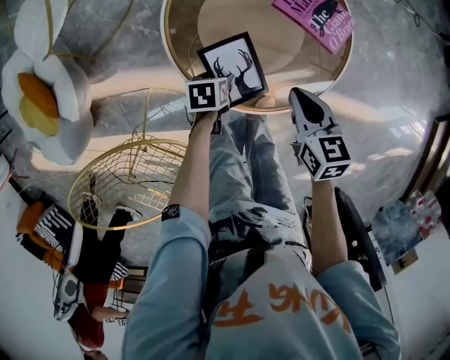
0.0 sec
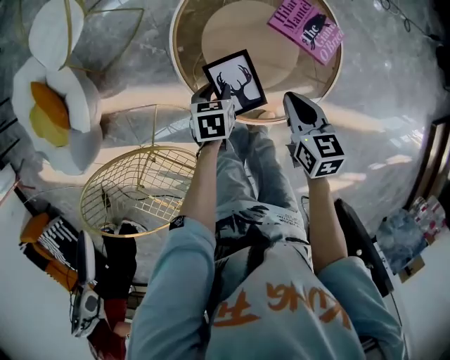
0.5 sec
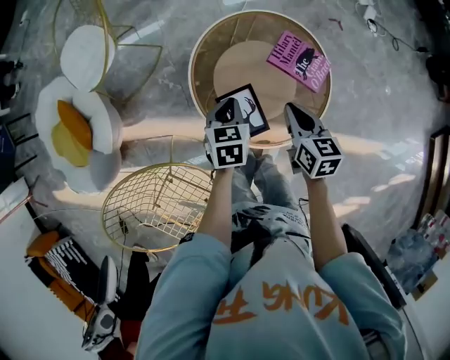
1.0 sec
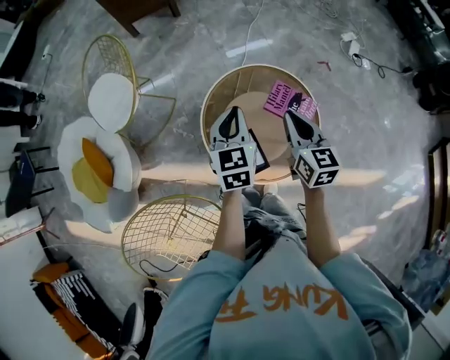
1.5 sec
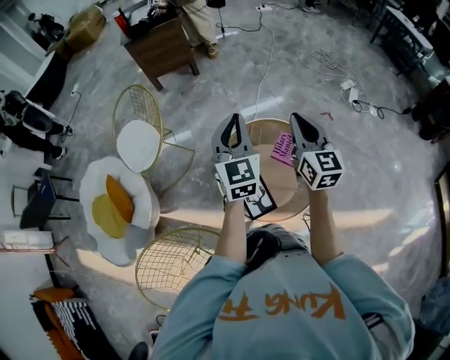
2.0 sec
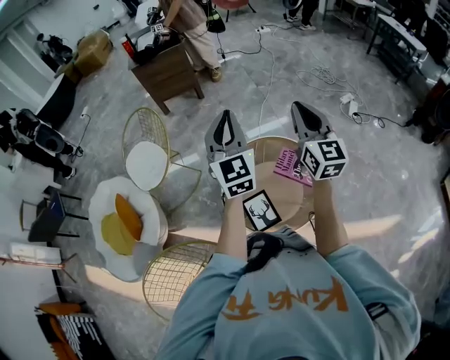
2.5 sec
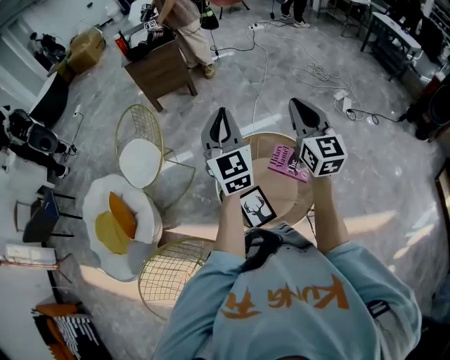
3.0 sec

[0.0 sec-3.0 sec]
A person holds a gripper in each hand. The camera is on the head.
0.0 sec to 1.5 sec: The right gripper travels upward and forward by approximately 25 cm, and changes its angle by some 30 degrees; the left gripper goes about 40 cm upward, tilts its fingers some 40 degrees upward, and closes its fingers.
1.5 sec to 3.0 sec: Both grippers travel together upward, roughly 25 cm. The left gripper changes its angle by some 30 degrees, while the right gripper changes its angle by roughly 30 degrees.

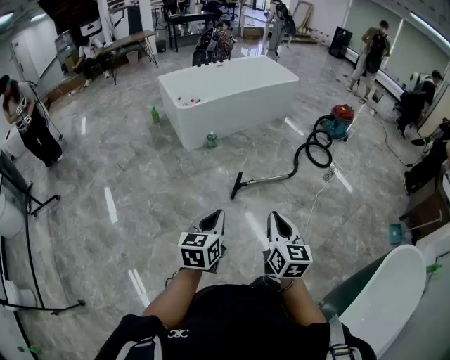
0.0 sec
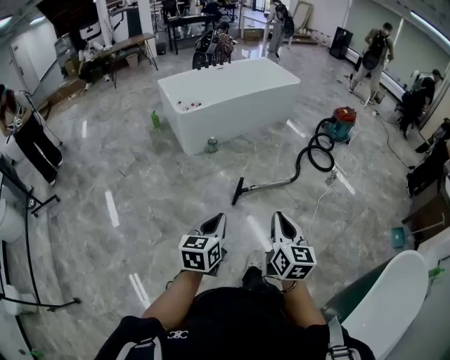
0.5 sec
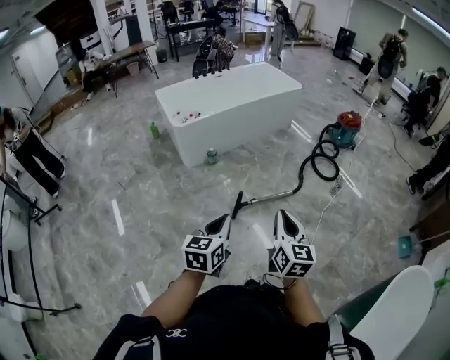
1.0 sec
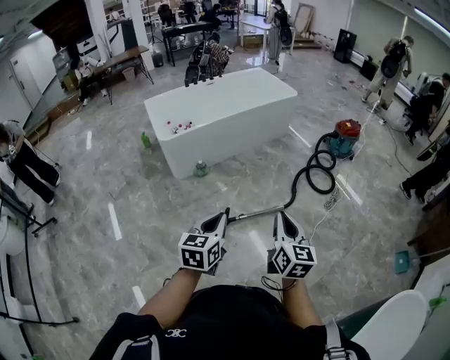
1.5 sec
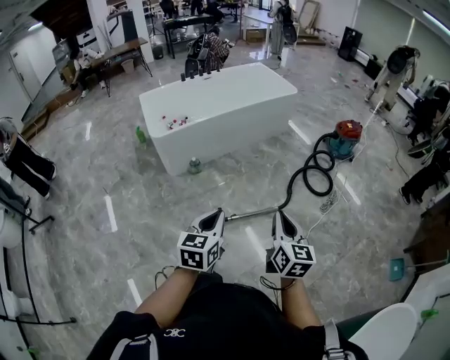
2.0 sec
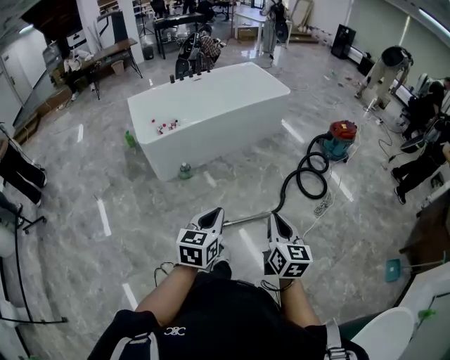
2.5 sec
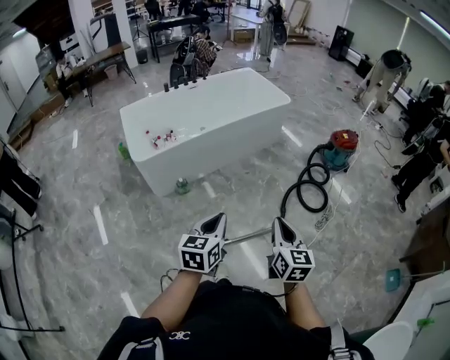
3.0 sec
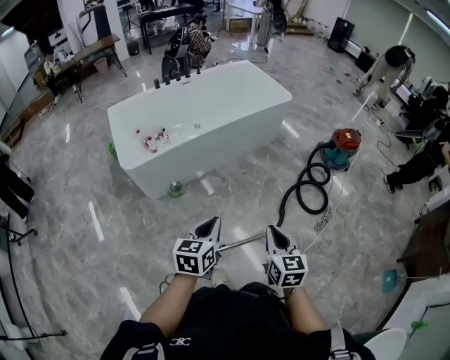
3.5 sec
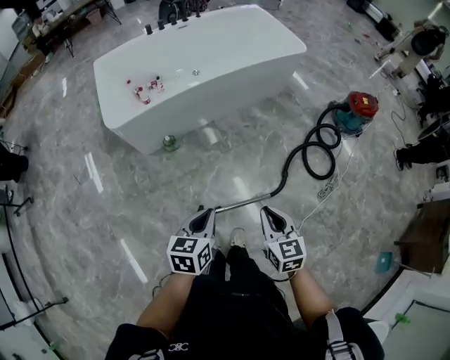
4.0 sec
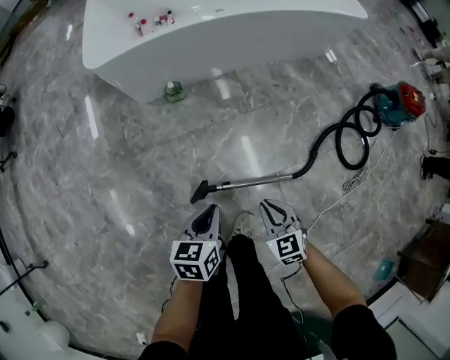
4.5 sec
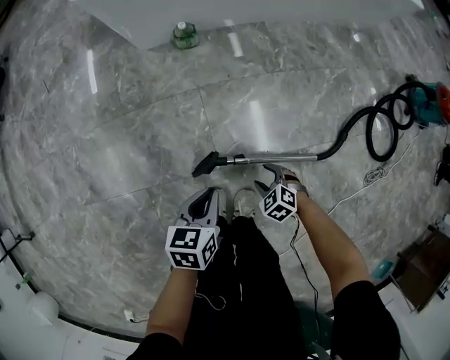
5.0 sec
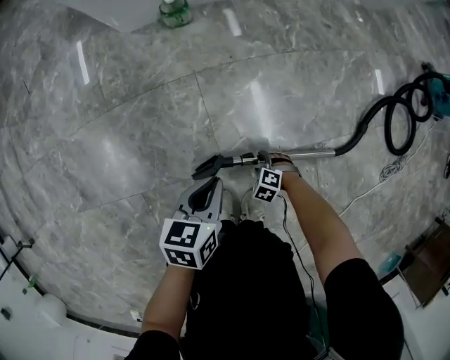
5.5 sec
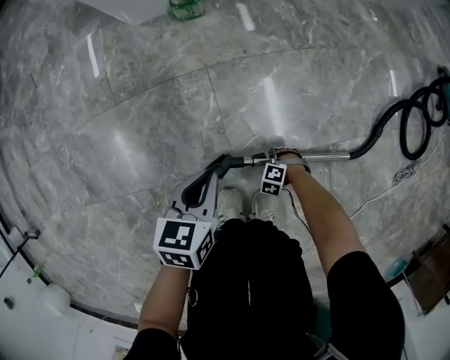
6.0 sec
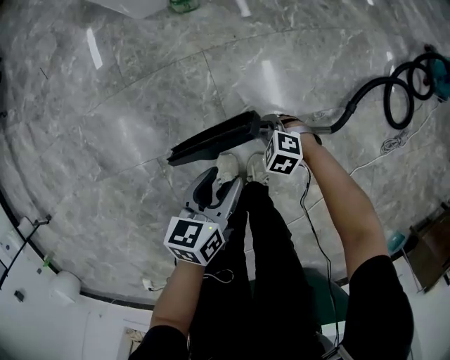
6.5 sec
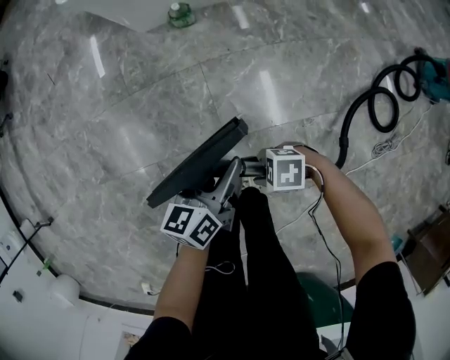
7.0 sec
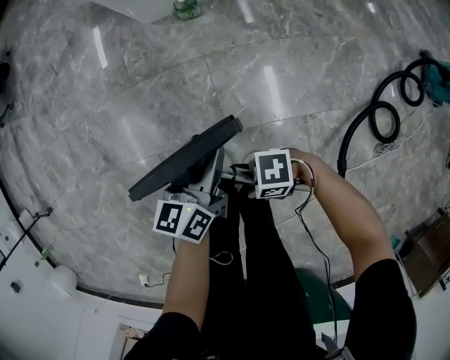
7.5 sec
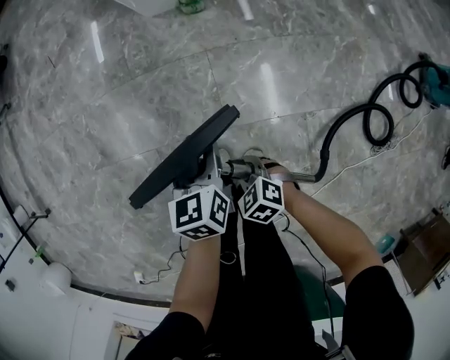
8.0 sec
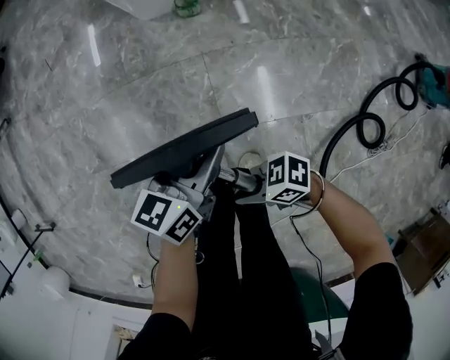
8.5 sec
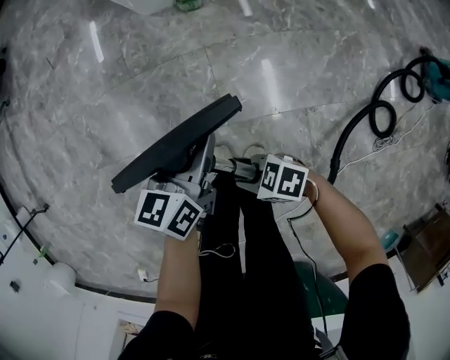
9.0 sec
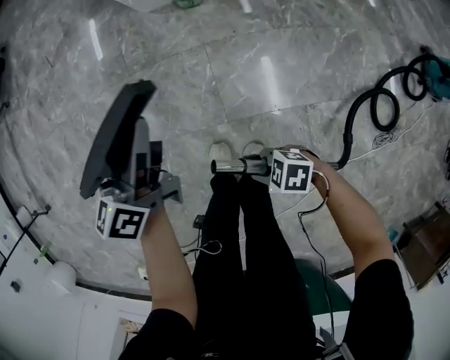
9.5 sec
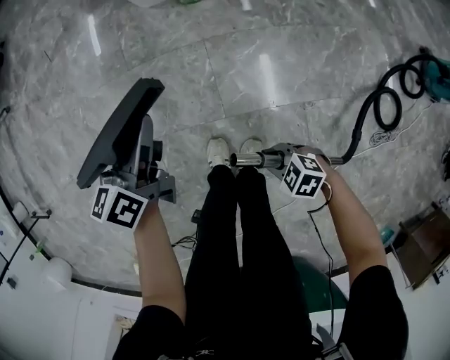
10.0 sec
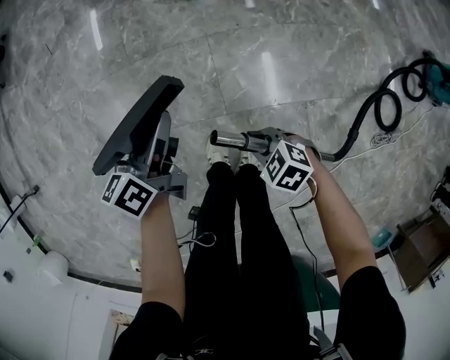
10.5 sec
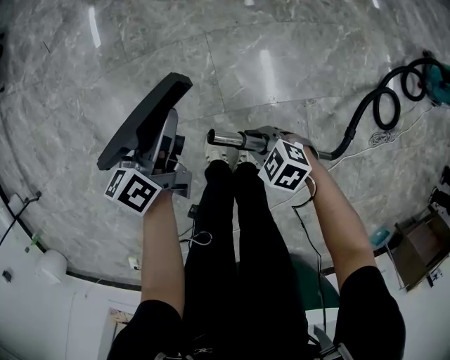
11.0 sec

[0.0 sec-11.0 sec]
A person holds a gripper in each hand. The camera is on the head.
0.0 sec to 2.0 sec: The pair of grippers is taken forward and to the right, about 40 cm.
2.0 sec to 3.5 sec: Both grippers move forward, roughly 30 cm.
3.5 sec to 5.5 sec: The two grippers go some 80 cm downward. The right gripper tips its fingers downward by about 60 degrees, and opens up, while the left gripper rotates about 30 degrees.
5.5 sec to 7.5 sec: The left gripper is displaced upward by roughly 25 cm, swivels roughly 30 degrees, and opens its fingers, while the right gripper travels upward by roughly 40 cm, angles its fingers upward, by approximately 50 degrees, and closes up.
7.5 sec to 9.0 sec: The right gripper goes up and down, some 10 cm each way, reversing 2 times, and swivels roughly 30 degrees.
9.0 sec to 11.0 sec: The left gripper reaches about 5 cm upward, then returns. The right gripper changes place by about 10 cm, and swivels approximately 30 degrees.

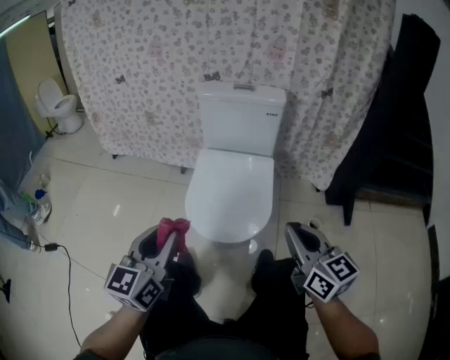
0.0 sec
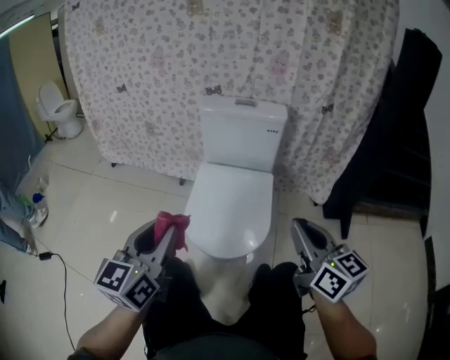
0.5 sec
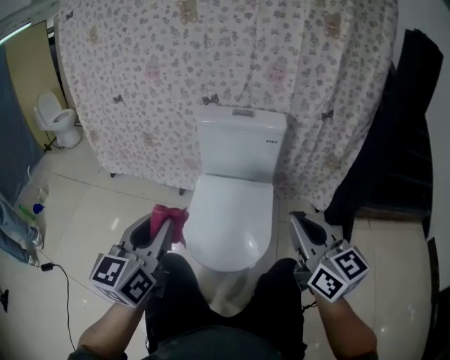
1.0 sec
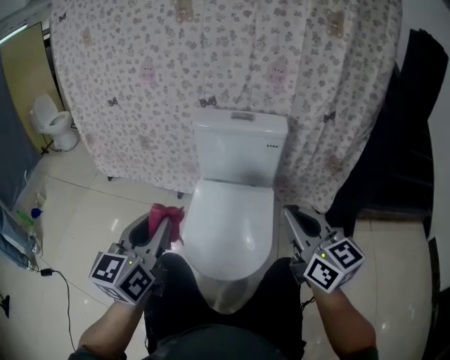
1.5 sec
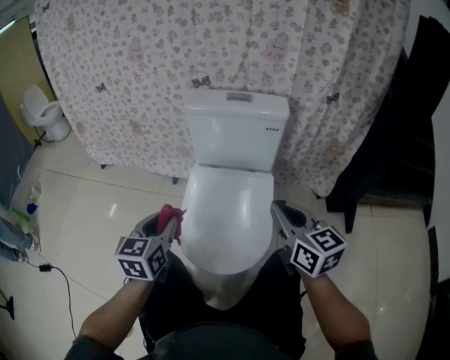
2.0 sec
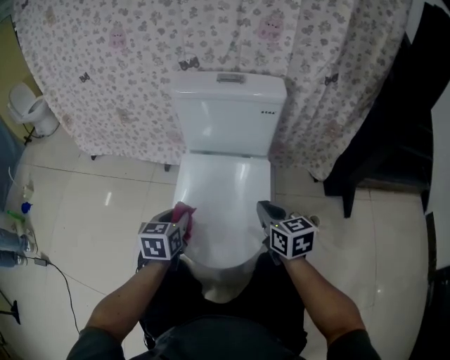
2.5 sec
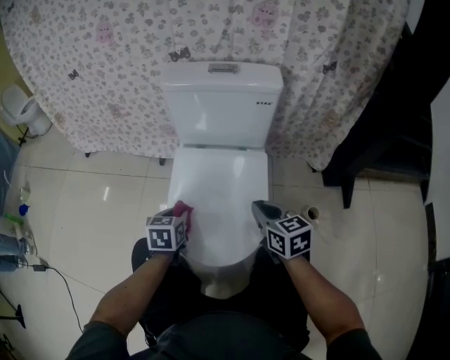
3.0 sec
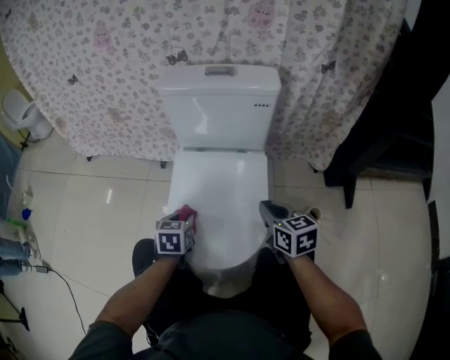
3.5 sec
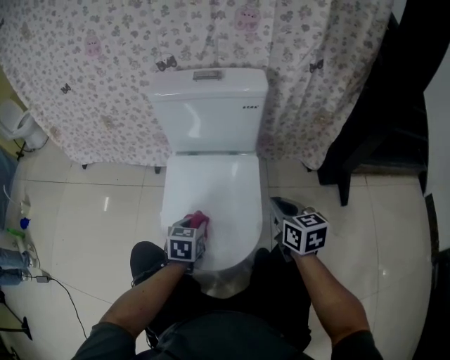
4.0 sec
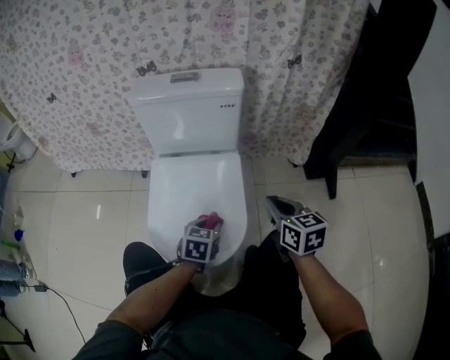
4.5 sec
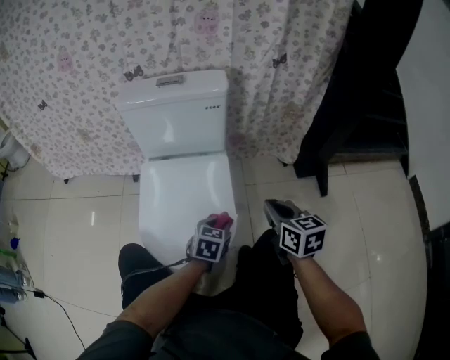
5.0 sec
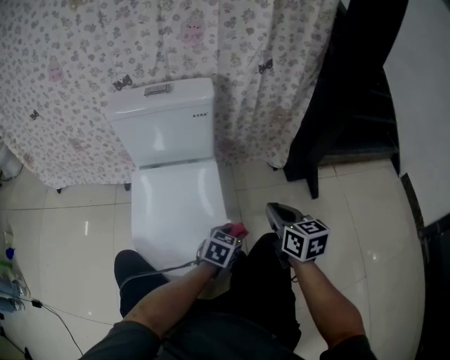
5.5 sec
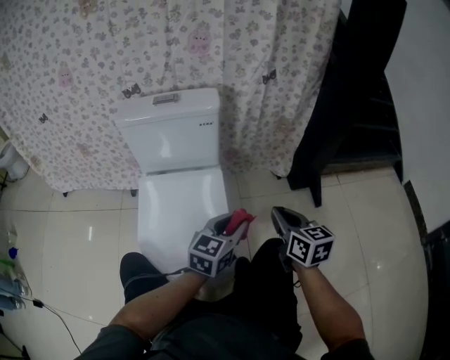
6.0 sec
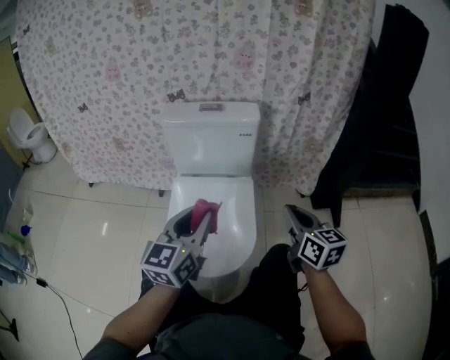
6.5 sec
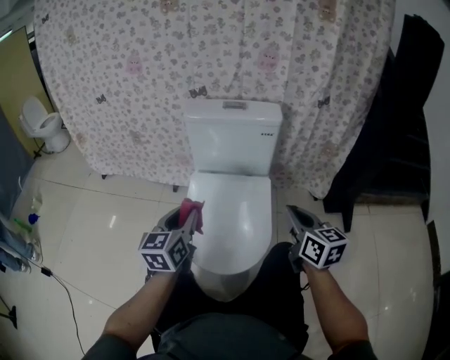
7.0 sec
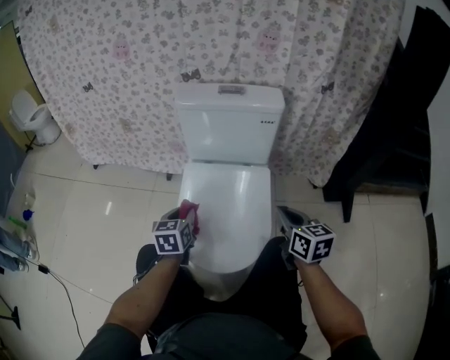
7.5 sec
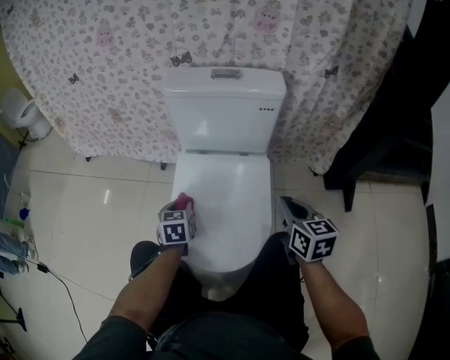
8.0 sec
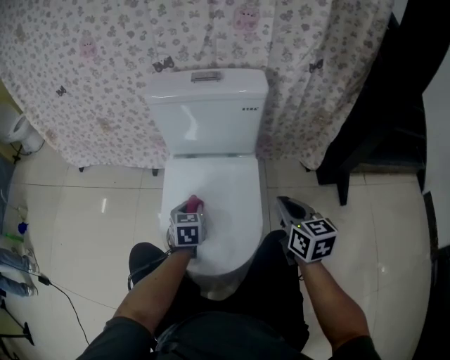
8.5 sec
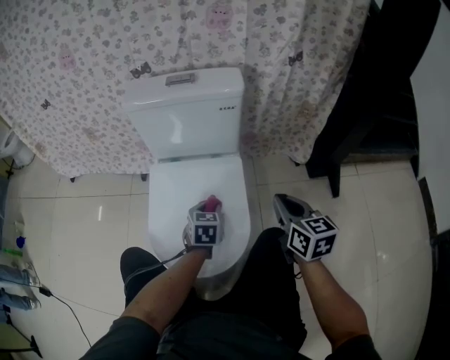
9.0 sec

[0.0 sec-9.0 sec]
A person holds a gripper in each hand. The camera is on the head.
0.0 sec to 2.0 sec: Both grippers travel together forward, about 20 cm.
2.0 sec to 4.5 sec: The right gripper heads downward and to the right, covering some 15 cm, and swivels roughly 20 degrees. The left gripper is displaced to the right and downward by about 30 cm, and turns by approximately 30 degrees.
4.5 sec to 7.0 sec: The left gripper moves upward, approximately 20 cm, and tilts its fingers about 30 degrees upward, while the right gripper travels upward by roughly 10 cm.
7.0 sec to 9.0 sec: The right gripper goes about 10 cm downward and to the right. Meanwhile the left gripper shifts approximately 30 cm downward, to the right and forward, and rotates some 30 degrees.

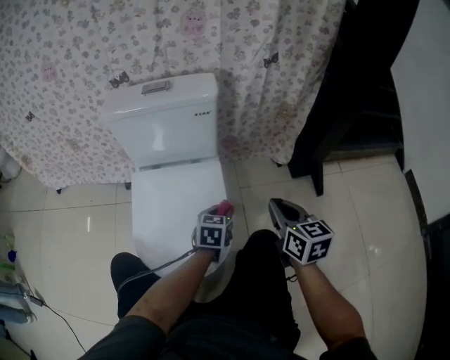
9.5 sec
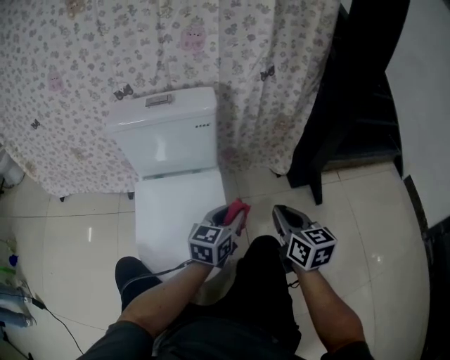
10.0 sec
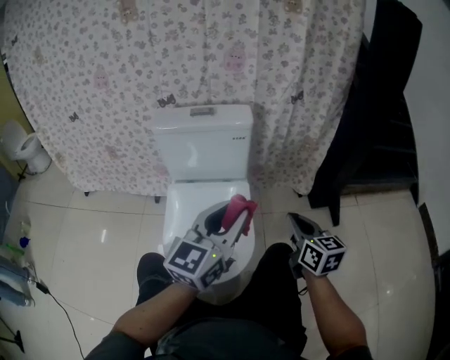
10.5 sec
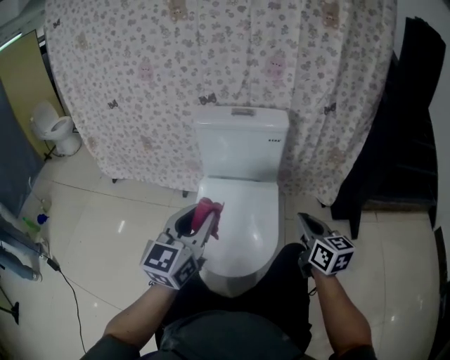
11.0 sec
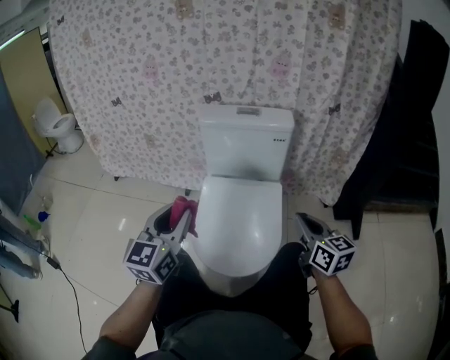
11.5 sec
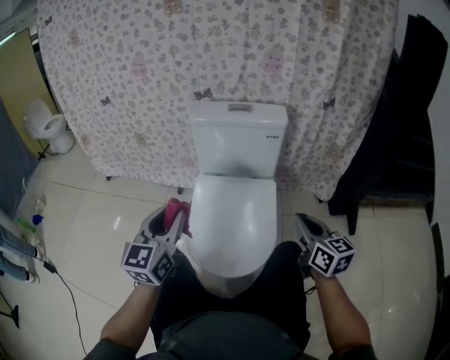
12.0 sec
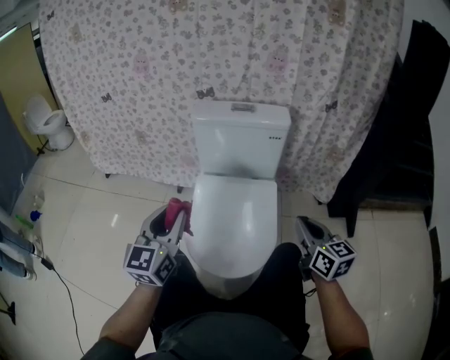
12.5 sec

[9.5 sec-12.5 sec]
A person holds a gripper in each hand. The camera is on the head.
9.5 sec to 11.0 sec: The left gripper moves upward, to the left and backward, about 40 cm, and tilts its fingers about 40 degrees upward; the right gripper travels to the left and upward by roughly 10 cm.
11.0 sec to 12.5 sec: The left gripper is displaced to the left by roughly 10 cm.
